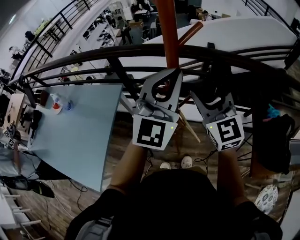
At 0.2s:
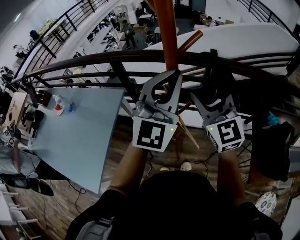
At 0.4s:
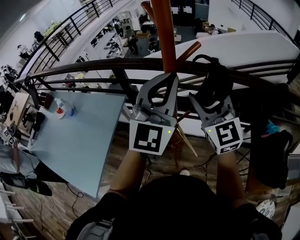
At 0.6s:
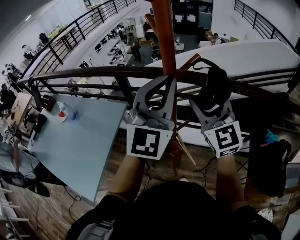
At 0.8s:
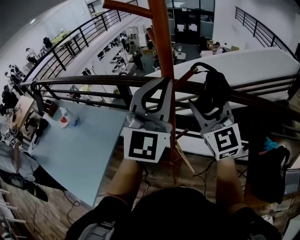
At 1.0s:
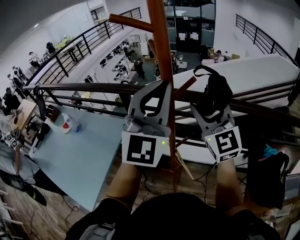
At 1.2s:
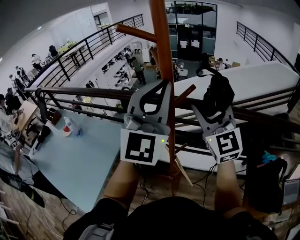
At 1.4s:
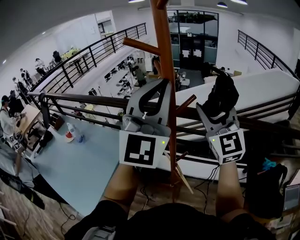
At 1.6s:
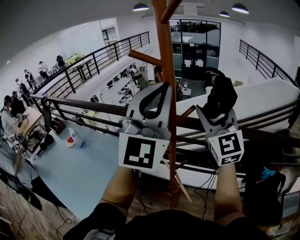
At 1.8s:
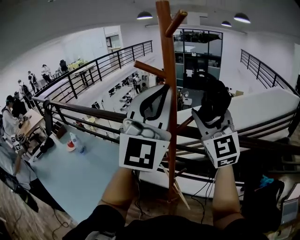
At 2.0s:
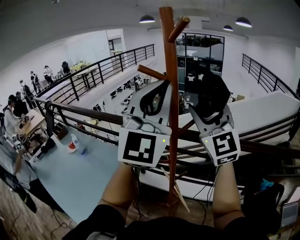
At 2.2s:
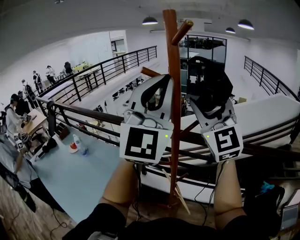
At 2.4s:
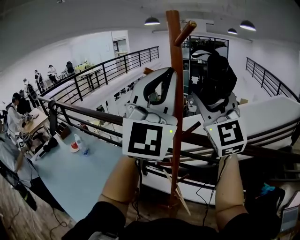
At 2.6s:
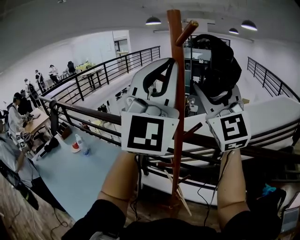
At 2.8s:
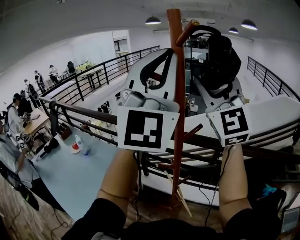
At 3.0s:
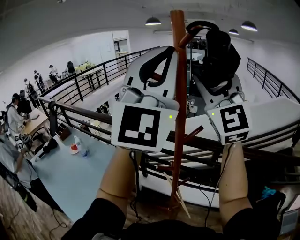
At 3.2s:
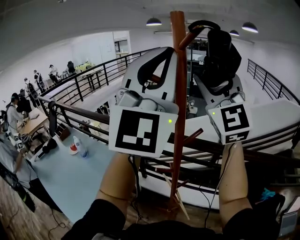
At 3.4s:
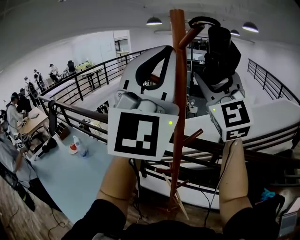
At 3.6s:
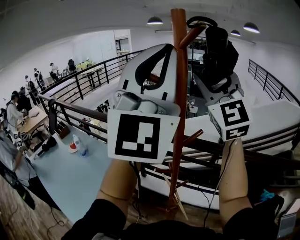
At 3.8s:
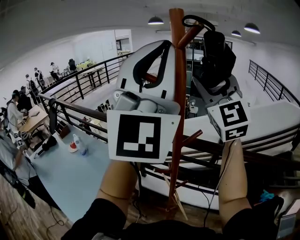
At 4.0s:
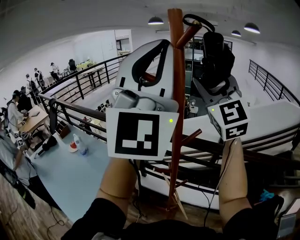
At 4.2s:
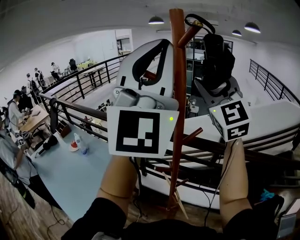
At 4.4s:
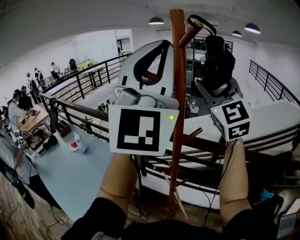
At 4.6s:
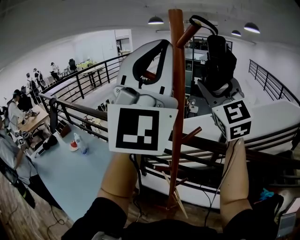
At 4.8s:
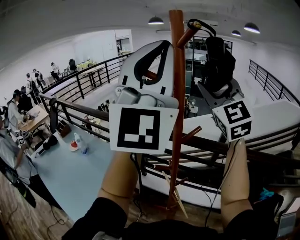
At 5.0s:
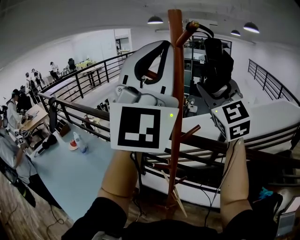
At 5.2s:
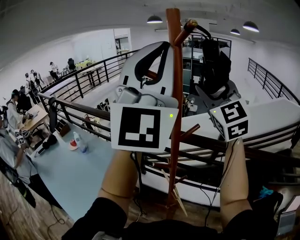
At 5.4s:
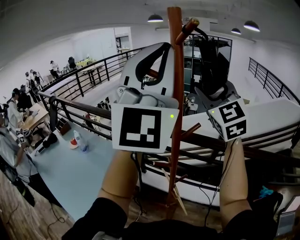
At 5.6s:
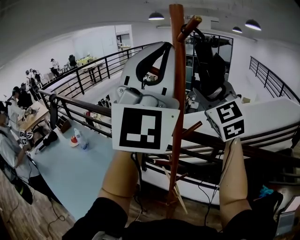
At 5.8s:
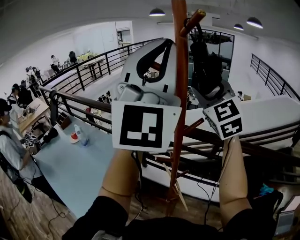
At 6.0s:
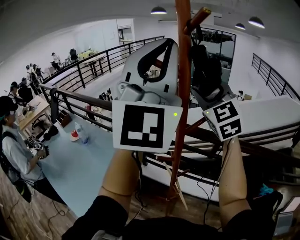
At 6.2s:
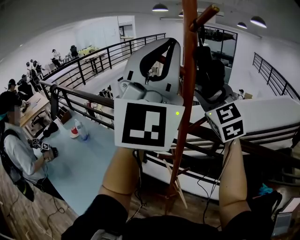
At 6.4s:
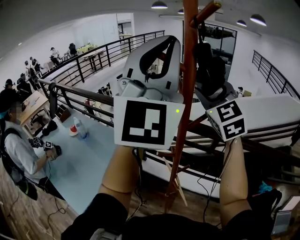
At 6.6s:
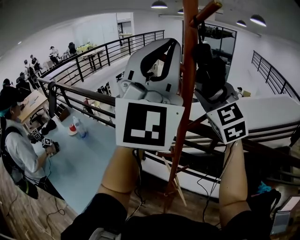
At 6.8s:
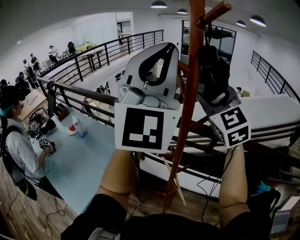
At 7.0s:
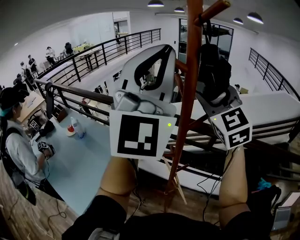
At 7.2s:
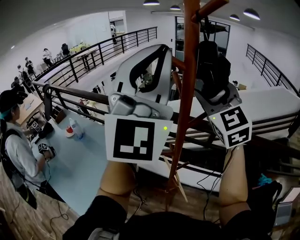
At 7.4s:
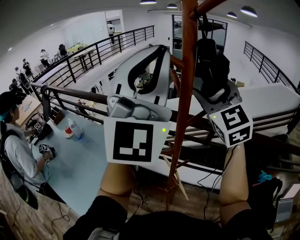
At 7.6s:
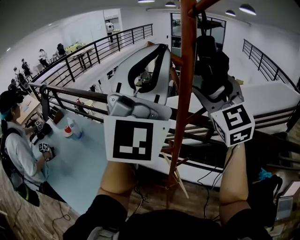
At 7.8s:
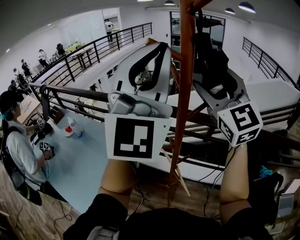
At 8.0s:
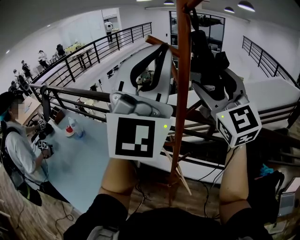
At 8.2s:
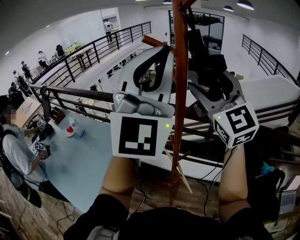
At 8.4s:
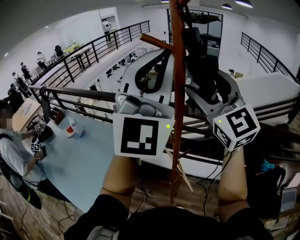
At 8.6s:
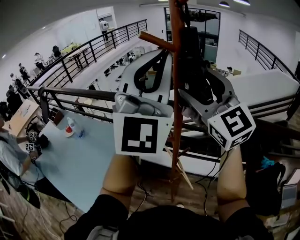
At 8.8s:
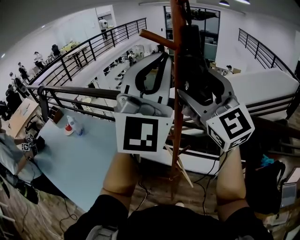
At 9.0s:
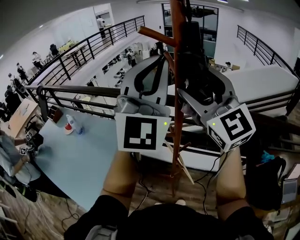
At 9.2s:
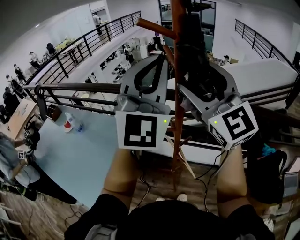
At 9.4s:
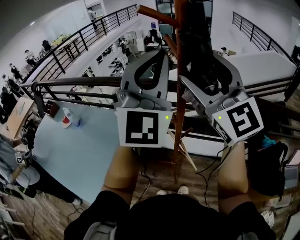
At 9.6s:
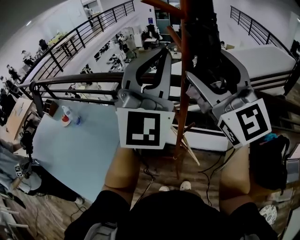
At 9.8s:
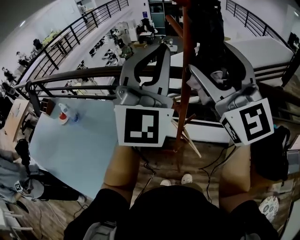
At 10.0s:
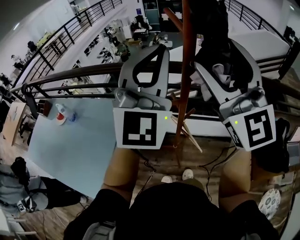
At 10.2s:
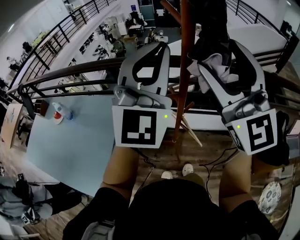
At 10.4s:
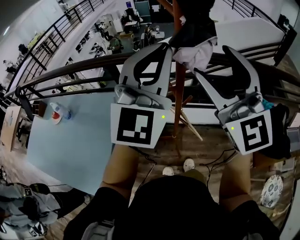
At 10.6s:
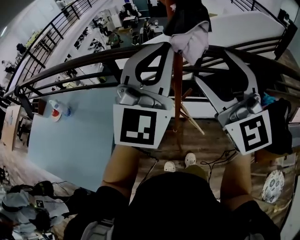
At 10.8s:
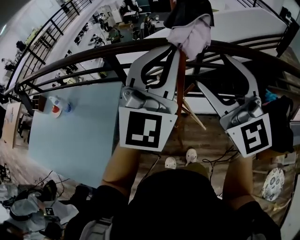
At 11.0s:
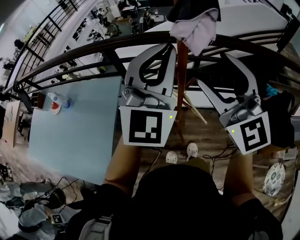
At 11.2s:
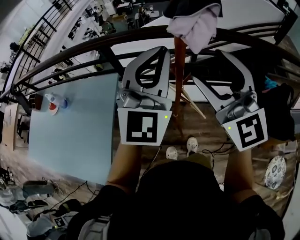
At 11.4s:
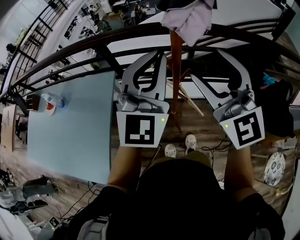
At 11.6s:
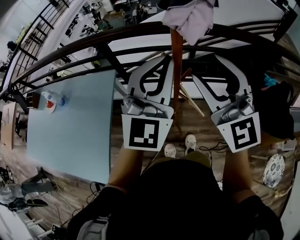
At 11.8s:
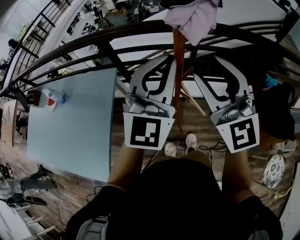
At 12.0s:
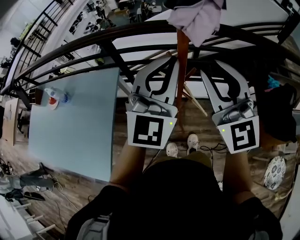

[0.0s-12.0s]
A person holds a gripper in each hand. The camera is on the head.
0.0s to 1.6s: The two grippers go about 20 cm upward. The left gripper rotates roughly 20 degrees; the right gripper swivels some 20 degrees.
1.6s to 3.0s: The grippers both shift upward by about 15 cm.
3.0s to 4.4s: The right gripper shifts by approximately 5 cm.
4.4s to 6.0s: The right gripper goes some 10 cm downward.
6.0s to 7.6s: The left gripper shifts by some 5 cm.
7.6s to 9.0s: The right gripper is displaced backward by approximately 5 cm. Meanwhile the left gripper moves downward, roughly 5 cm.
9.0s to 10.4s: The left gripper heads downward, covering some 10 cm, and turns by about 20 degrees; the right gripper shifts roughly 10 cm backward and downward.
10.4s to 12.0s: Both grippers travel together downward, some 10 cm. The right gripper closes.

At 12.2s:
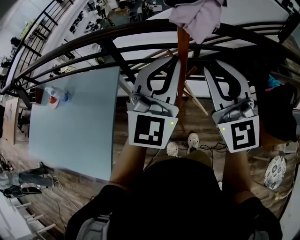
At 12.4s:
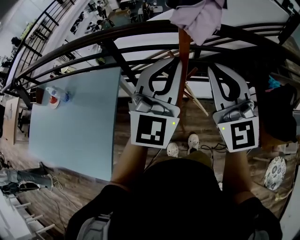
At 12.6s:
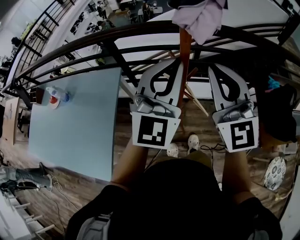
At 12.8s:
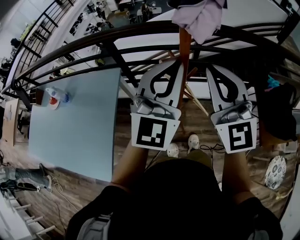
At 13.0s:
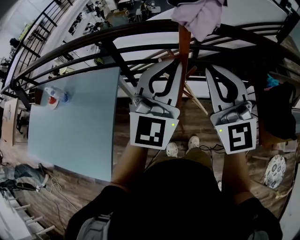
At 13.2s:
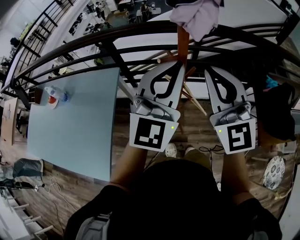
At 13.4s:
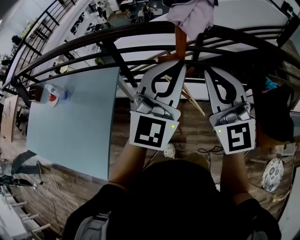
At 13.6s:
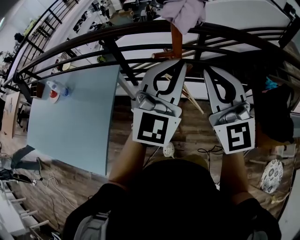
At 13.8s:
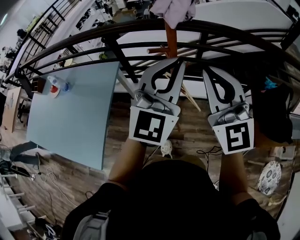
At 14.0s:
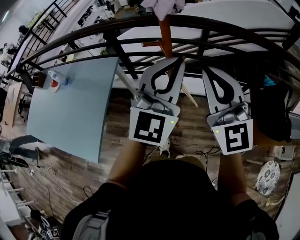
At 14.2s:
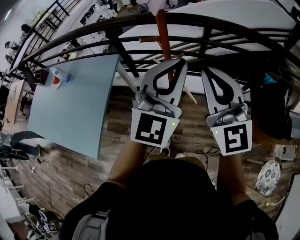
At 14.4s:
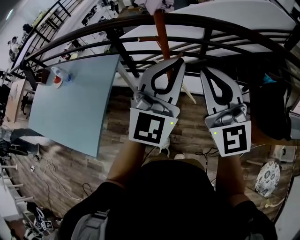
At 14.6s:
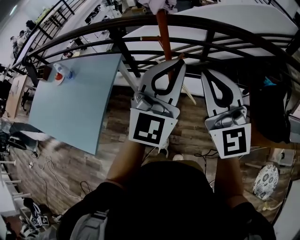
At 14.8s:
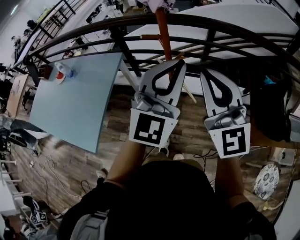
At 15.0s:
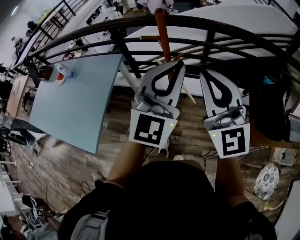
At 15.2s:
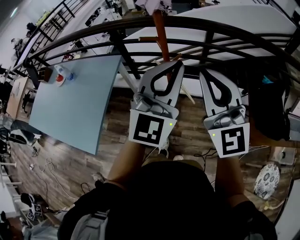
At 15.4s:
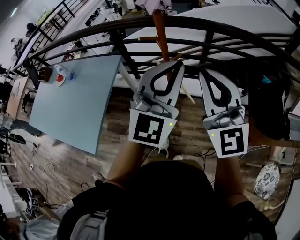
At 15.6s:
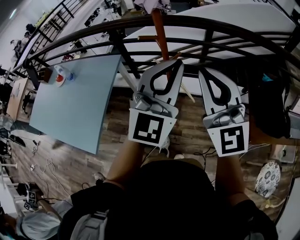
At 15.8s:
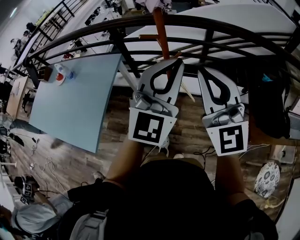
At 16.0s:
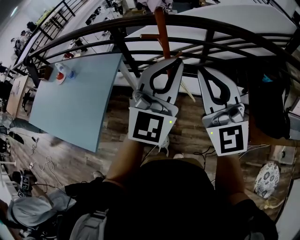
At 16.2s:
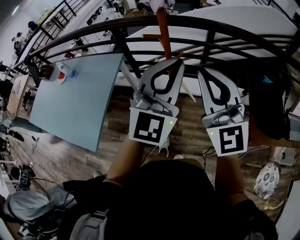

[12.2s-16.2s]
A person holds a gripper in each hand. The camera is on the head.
12.2s to 13.6s: There are only small adjustments of the grippers.
13.6s to 14.8s: Both grippers move backward and to the right, about 10 cm.
14.8s to 16.2s: The grippers make only small movements.

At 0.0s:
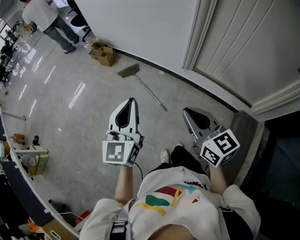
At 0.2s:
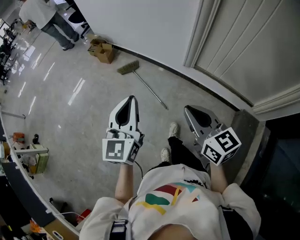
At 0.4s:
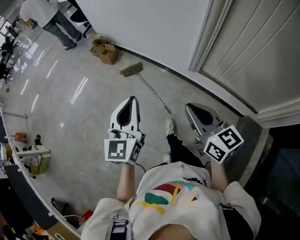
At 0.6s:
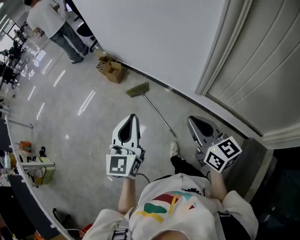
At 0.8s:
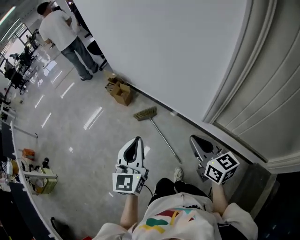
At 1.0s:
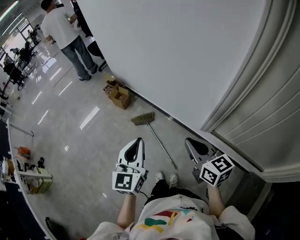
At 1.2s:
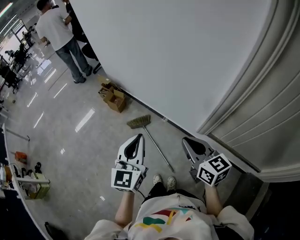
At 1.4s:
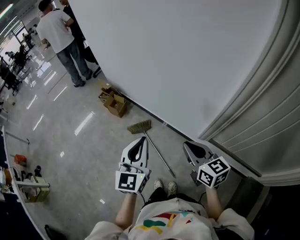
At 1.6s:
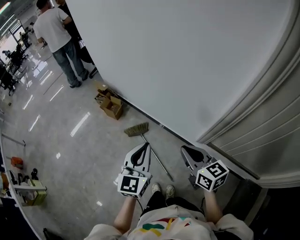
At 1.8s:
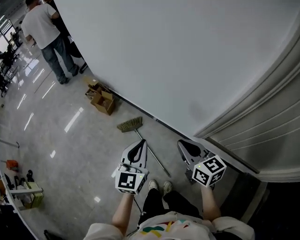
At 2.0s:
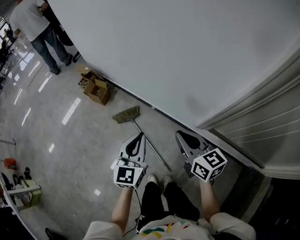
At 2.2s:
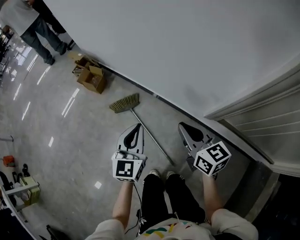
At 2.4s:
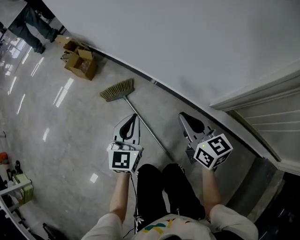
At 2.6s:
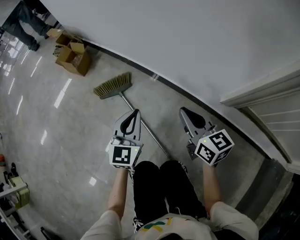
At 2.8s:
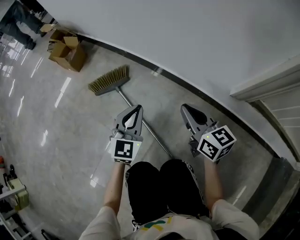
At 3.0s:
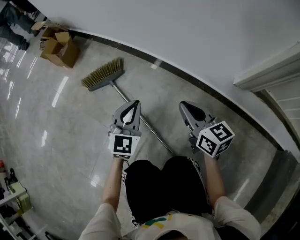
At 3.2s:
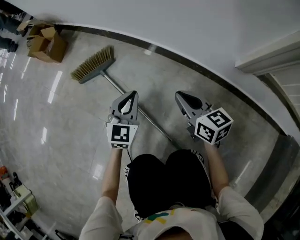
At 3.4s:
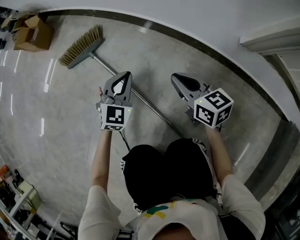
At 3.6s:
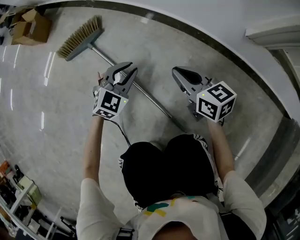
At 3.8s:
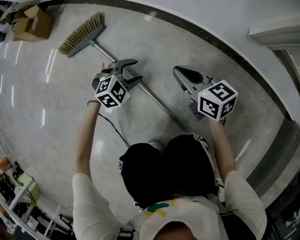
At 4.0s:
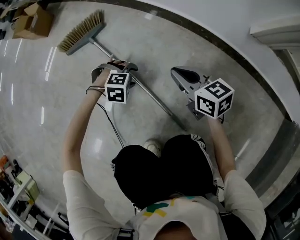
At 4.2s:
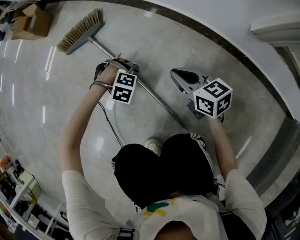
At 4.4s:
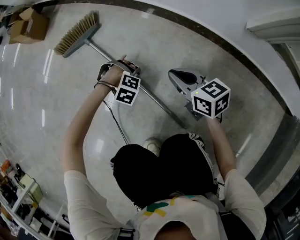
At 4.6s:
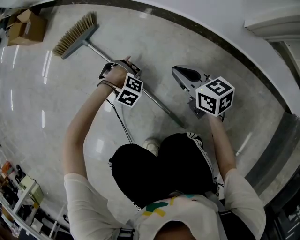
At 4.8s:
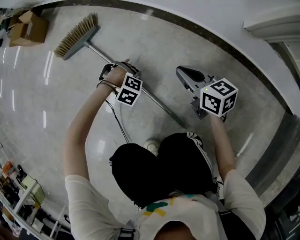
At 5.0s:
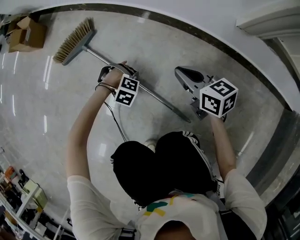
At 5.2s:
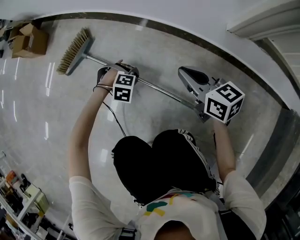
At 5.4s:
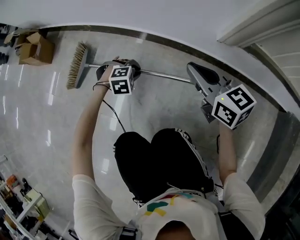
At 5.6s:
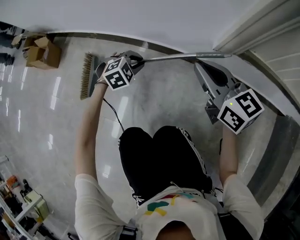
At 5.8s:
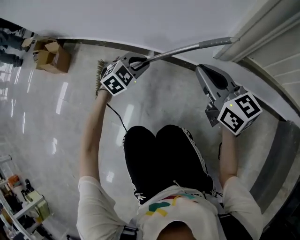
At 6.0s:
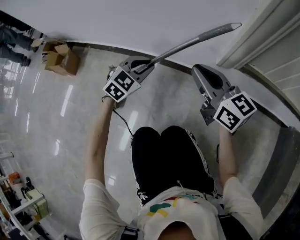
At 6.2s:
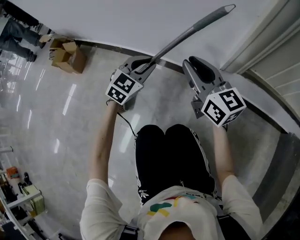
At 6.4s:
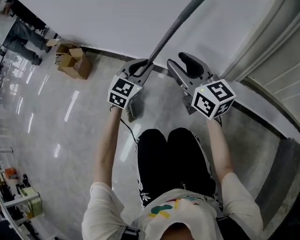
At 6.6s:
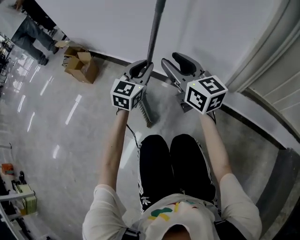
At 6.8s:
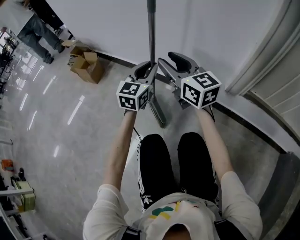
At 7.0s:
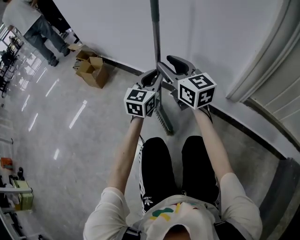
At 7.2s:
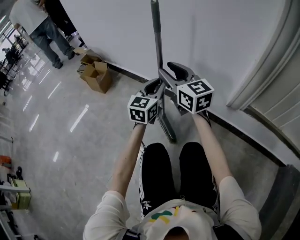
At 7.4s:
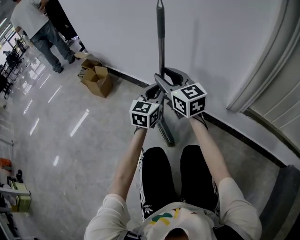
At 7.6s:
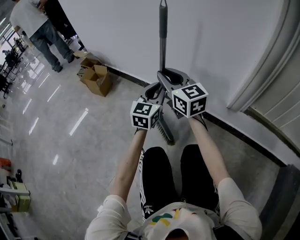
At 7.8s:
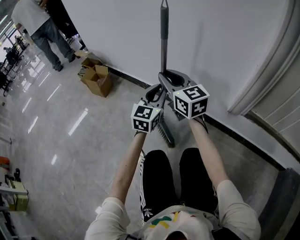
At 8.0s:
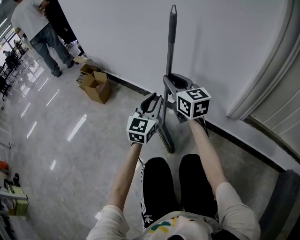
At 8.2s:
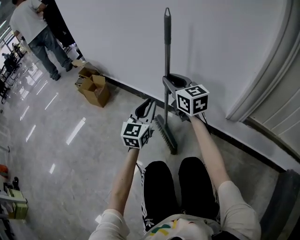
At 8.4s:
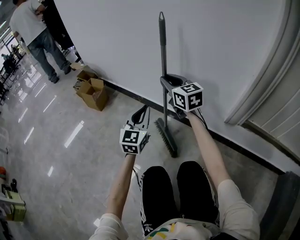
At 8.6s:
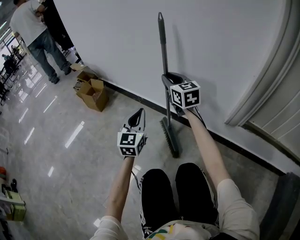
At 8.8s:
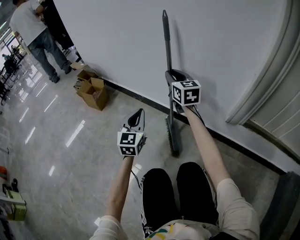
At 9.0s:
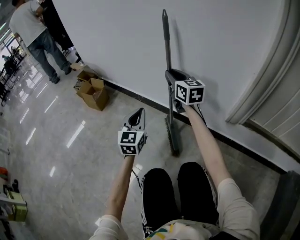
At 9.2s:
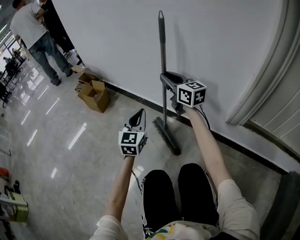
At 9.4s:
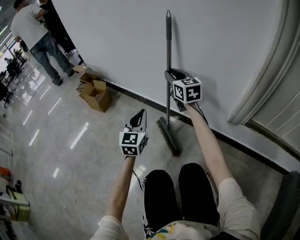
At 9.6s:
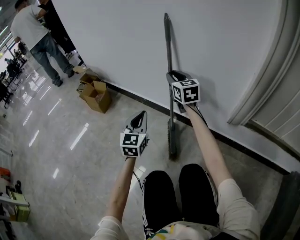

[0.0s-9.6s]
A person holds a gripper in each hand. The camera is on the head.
0.0s to 1.6s: The two grippers travel together, forward, approximately 50 cm.
1.6s to 3.2s: The grippers both shift downward by some 80 cm. The left gripper turns by some 20 degrees.
3.2s to 4.8s: The right gripper shifts roughly 10 cm downward. The left gripper shifts approximately 25 cm downward, angles its fingers downward, by roughly 60 degrees, and opens up.
4.8s to 6.4s: Both grippers travel together upward, about 40 cm. The left gripper angles its fingers upward, by about 70 degrees. The right gripper tips its fingers upward by about 30 degrees, and opens up.
6.4s to 8.0s: The right gripper travels to the left, forward and upward by roughly 15 cm, and closes its fingers. The left gripper moves upward and to the left, about 10 cm, and turns by roughly 30 degrees.
8.0s to 9.6s: The right gripper travels forward by some 10 cm. The left gripper travels downward by some 5 cm.
